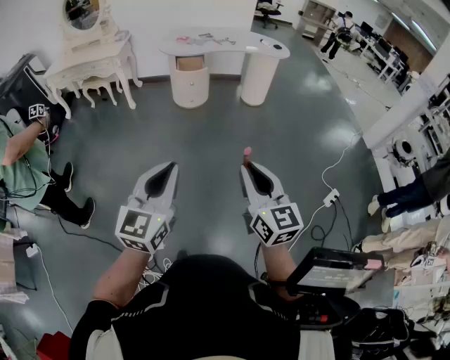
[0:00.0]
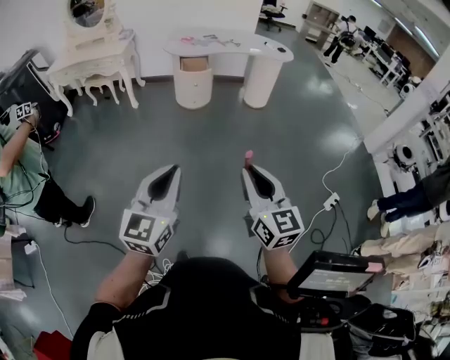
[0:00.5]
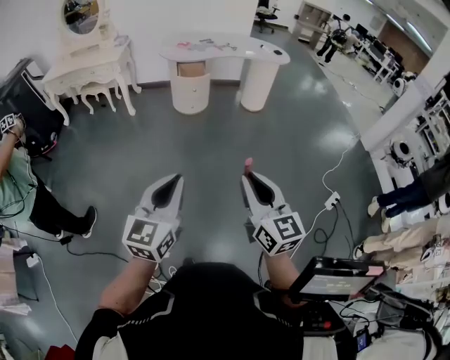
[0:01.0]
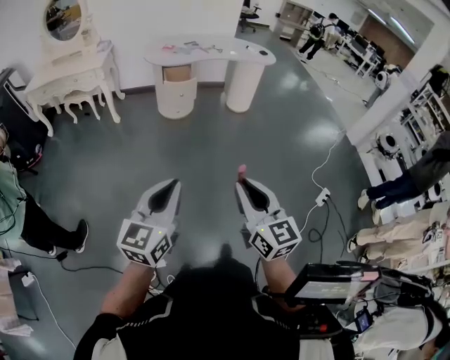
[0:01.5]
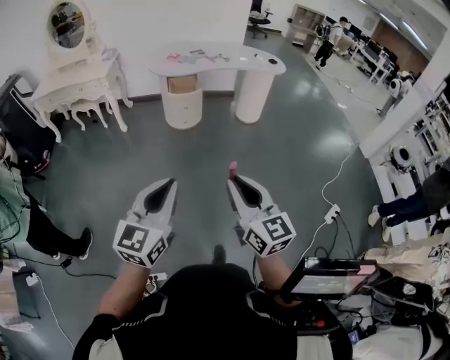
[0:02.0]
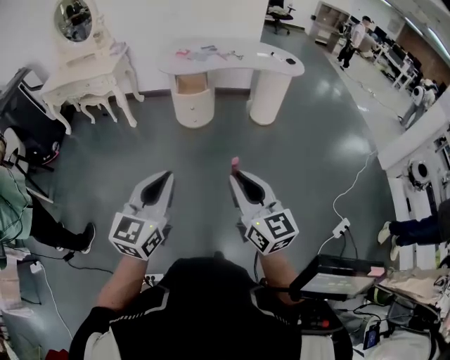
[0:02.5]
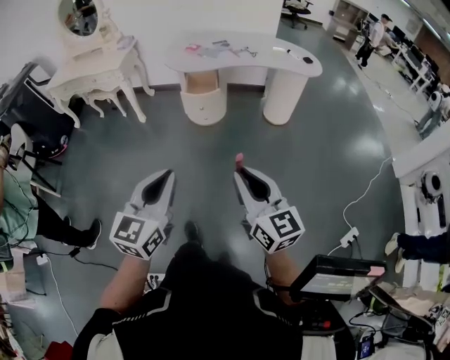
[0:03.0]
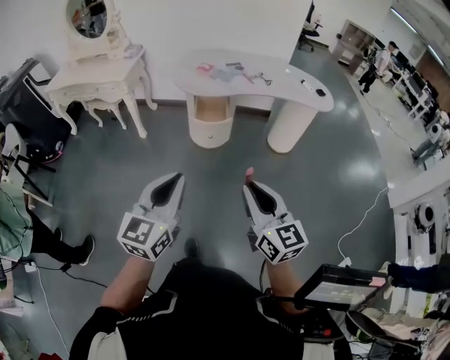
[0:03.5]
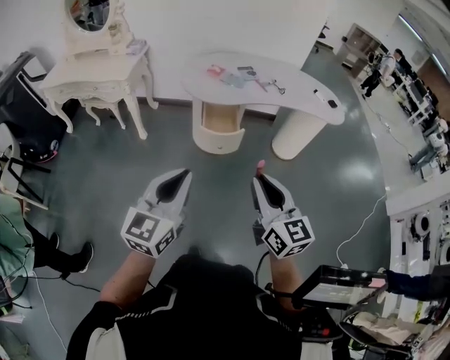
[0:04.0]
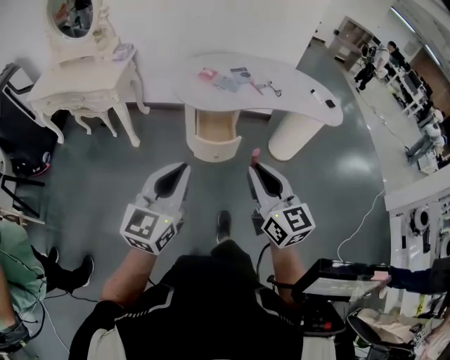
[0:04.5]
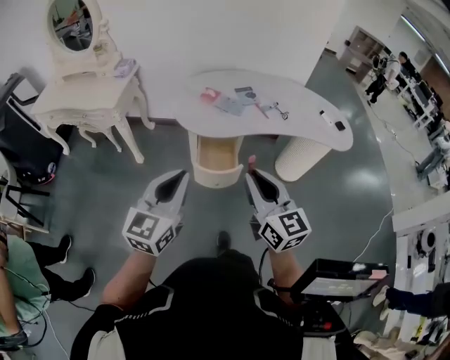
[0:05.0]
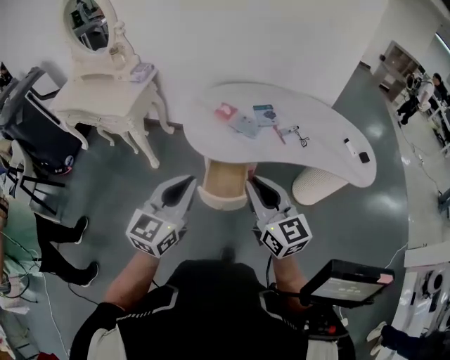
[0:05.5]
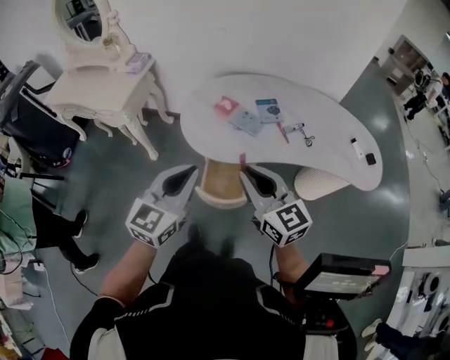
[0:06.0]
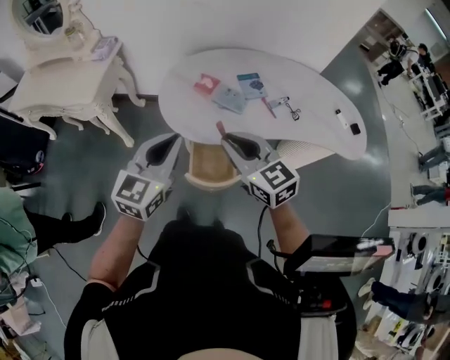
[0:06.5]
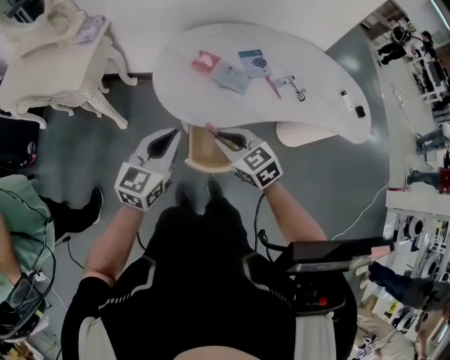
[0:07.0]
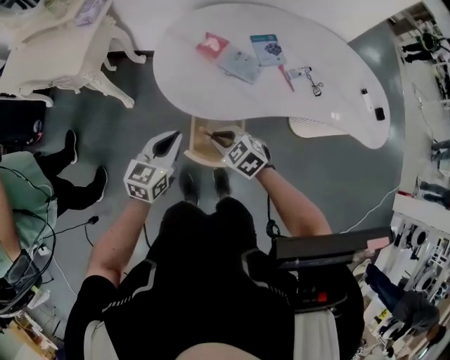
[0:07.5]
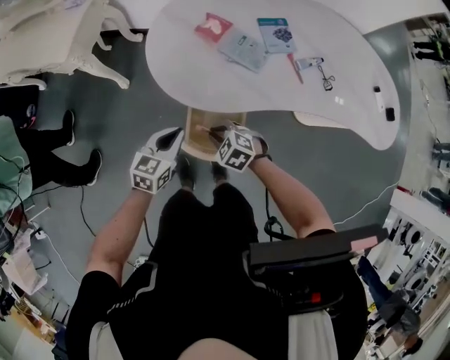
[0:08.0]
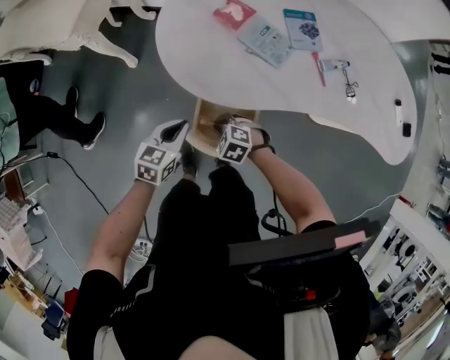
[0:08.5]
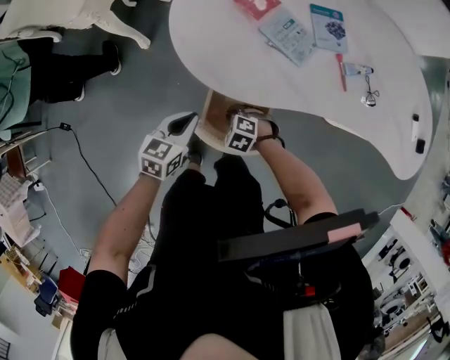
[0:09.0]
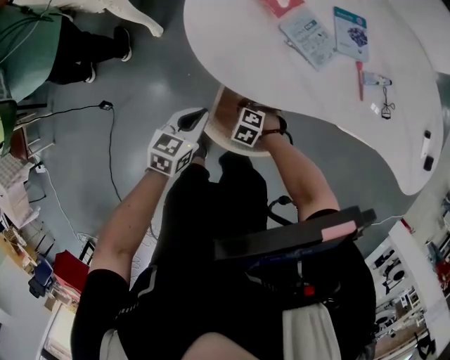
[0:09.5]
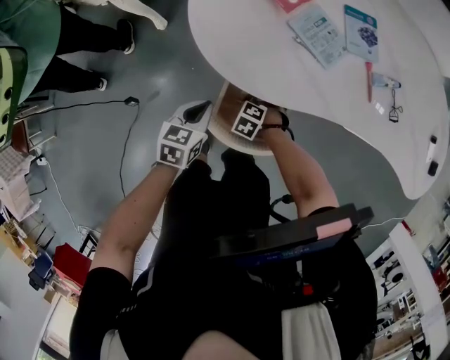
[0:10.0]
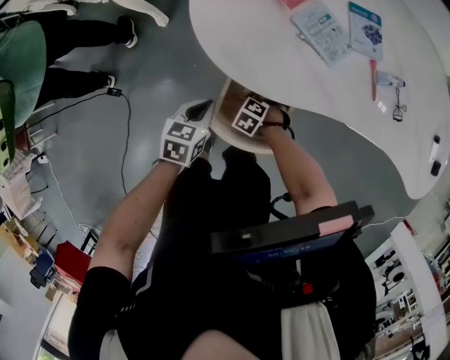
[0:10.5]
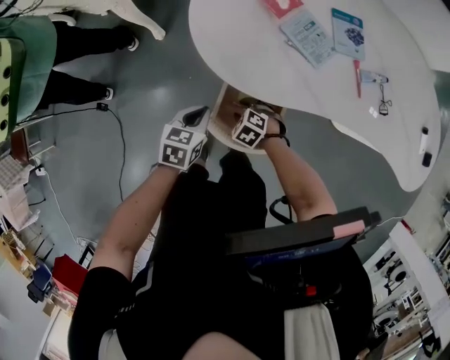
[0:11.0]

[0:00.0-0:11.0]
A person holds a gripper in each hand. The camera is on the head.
0.0 to 2.0 s: The right gripper shifts roughly 15 cm forward and to the left, while the left gripper shifts some 15 cm forward.
2.0 to 3.5 s: Both grippers travel together forward, roughly 35 cm.
3.5 to 5.5 s: Both grippers are carried forward, some 40 cm.
5.5 to 7.5 s: Both grippers travel together downward and forward, some 30 cm. The right gripper angles its fingers downward, by approximately 50 degrees; the left gripper changes its angle by roughly 20 degrees.
7.5 to 9.0 s: Both grippers travel together downward, about 20 cm. The right gripper changes its angle by approximately 30 degrees.
9.0 to 11.0 s: The right gripper opens.

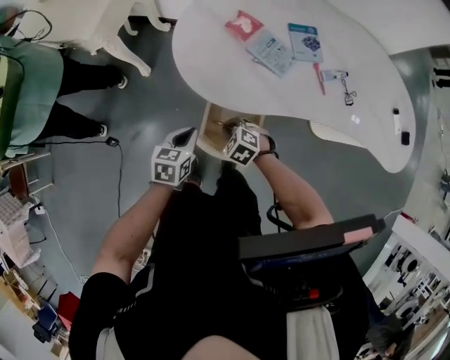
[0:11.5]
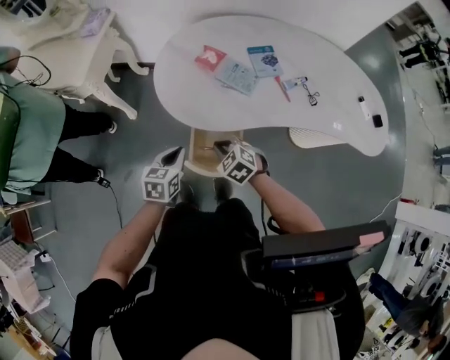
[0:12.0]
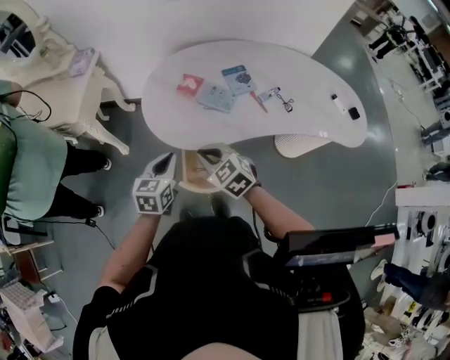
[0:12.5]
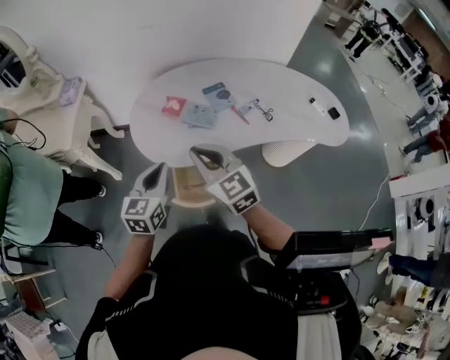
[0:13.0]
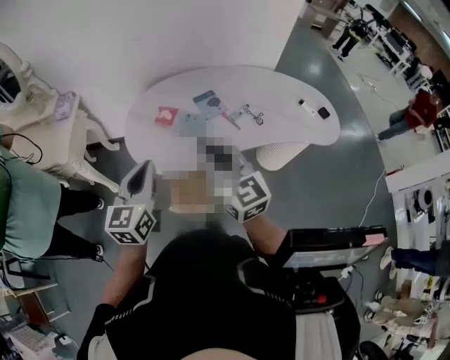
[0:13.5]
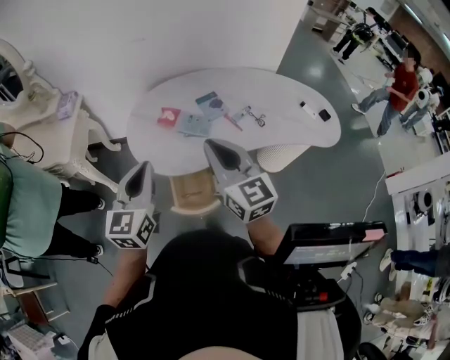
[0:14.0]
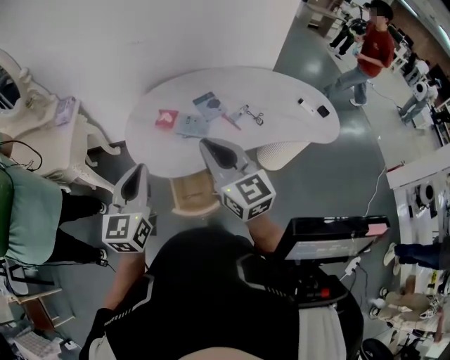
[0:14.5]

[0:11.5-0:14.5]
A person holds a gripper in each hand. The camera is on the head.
11.5 to 13.0 s: The left gripper travels upward by about 25 cm, and swivels about 30 degrees. Meanwhile the right gripper heads upward, covering approximately 35 cm, and tips its fingers upward by some 50 degrees.
13.0 to 14.5 s: Both grippers travel together upward, roughly 10 cm.

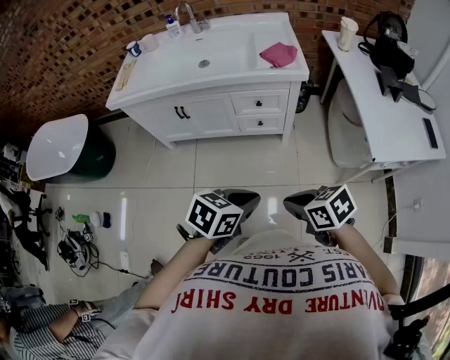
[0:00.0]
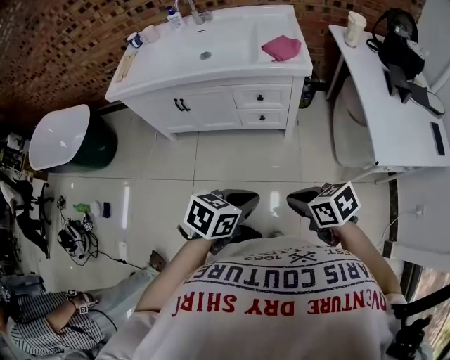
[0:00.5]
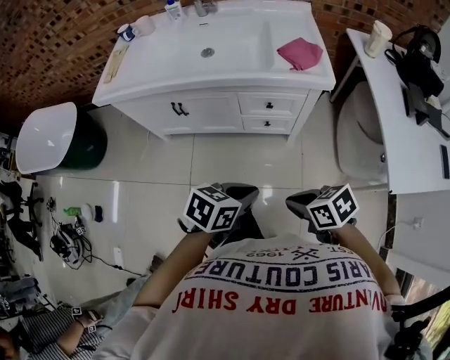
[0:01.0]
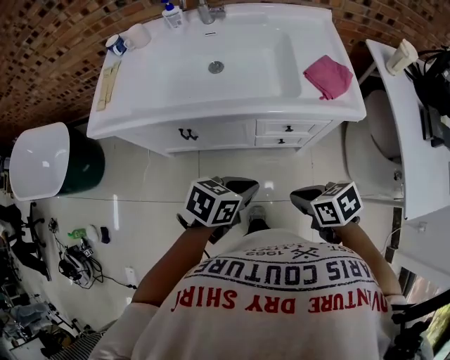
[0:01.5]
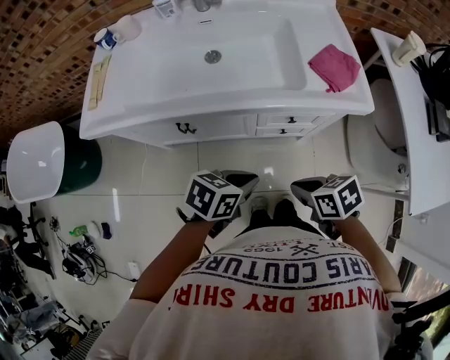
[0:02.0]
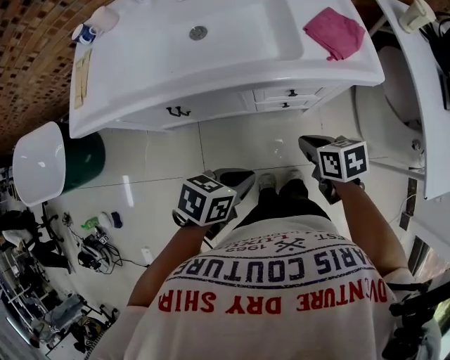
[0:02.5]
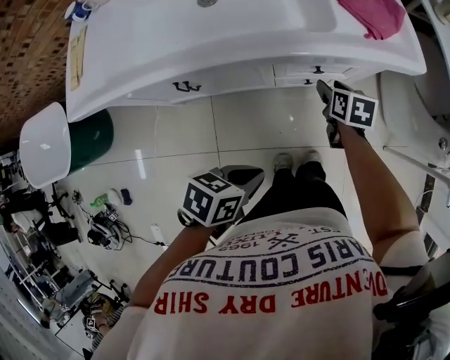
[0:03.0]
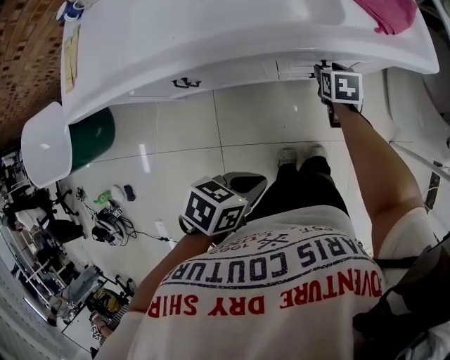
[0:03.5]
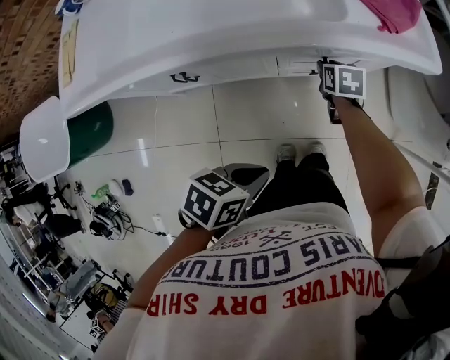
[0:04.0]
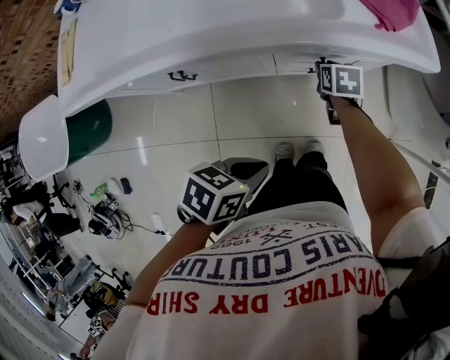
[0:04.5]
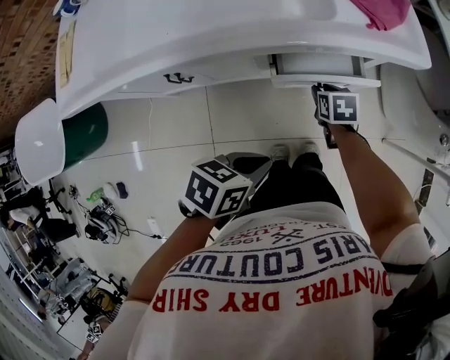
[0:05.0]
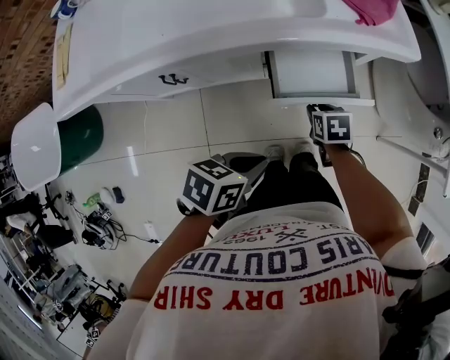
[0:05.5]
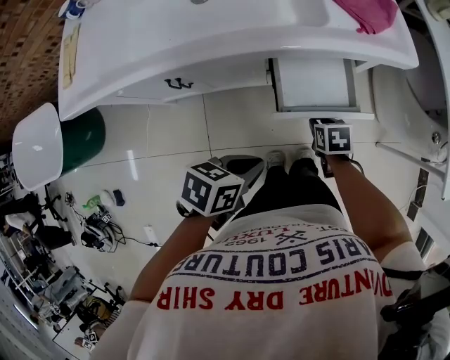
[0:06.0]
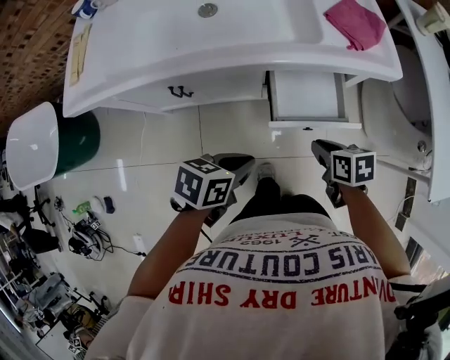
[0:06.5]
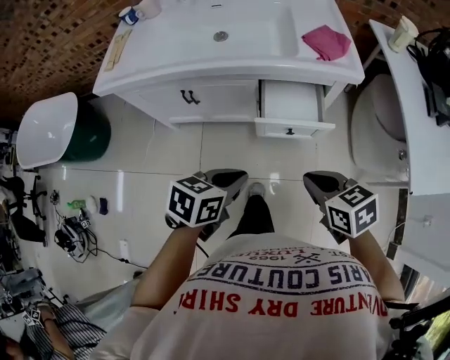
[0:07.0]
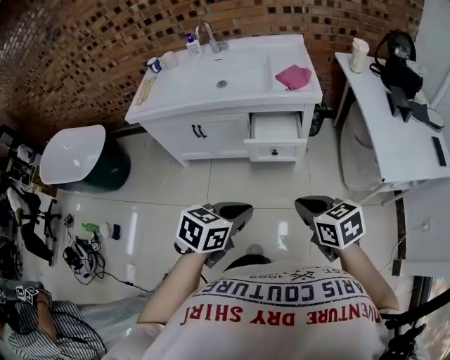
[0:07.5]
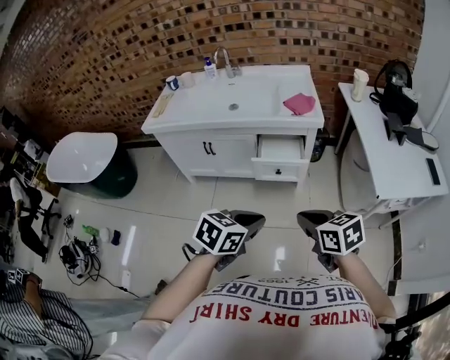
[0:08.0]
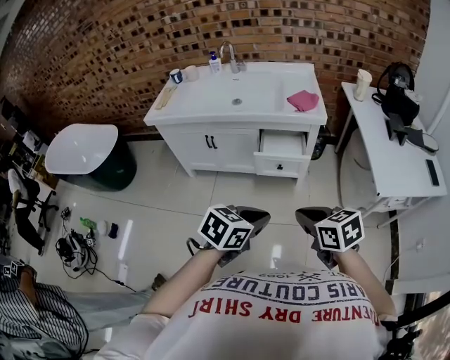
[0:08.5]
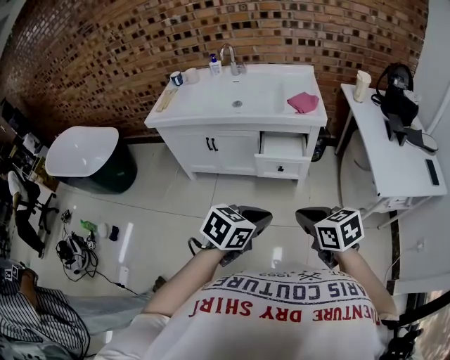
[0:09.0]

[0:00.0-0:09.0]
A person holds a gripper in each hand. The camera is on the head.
0.0 to 2.0 s: The right gripper shifts by some 35 cm, while the left gripper changes place by about 35 cm.
2.0 to 4.5 s: The right gripper travels downward by approximately 25 cm, changes its angle by about 30 degrees, and opens up, while the left gripper goes some 10 cm downward.
4.5 to 7.0 s: The right gripper changes place by roughly 40 cm, turns by approximately 40 degrees, and closes its fingers; the left gripper moves upward, roughly 15 cm, and turns by some 20 degrees.
7.0 to 9.0 s: The left gripper is displaced backward, upward and to the right by about 30 cm; the right gripper is displaced backward and upward by roughly 25 cm.

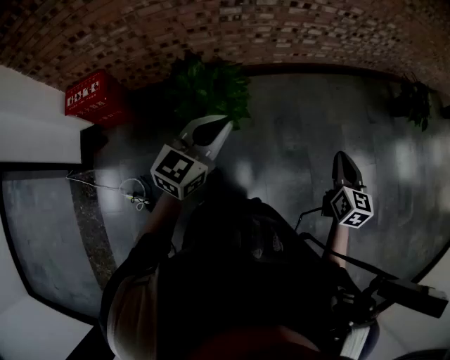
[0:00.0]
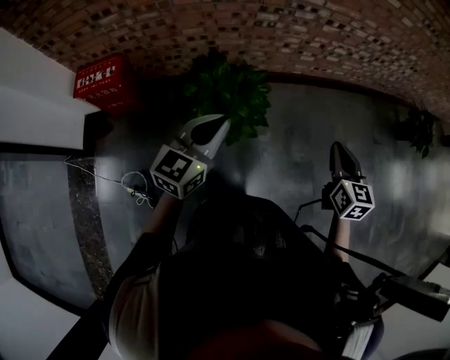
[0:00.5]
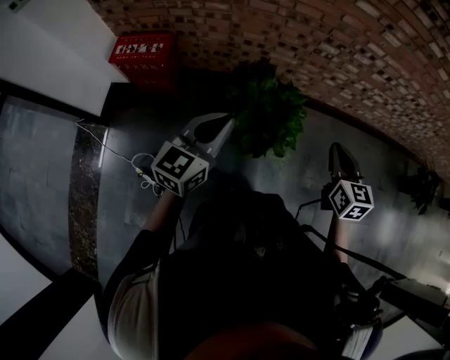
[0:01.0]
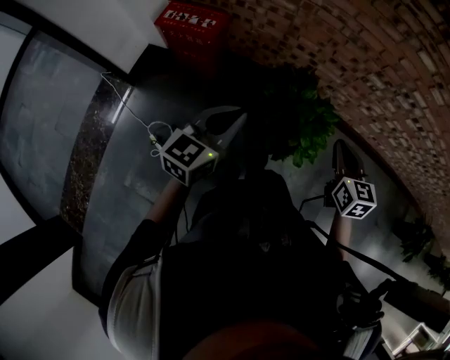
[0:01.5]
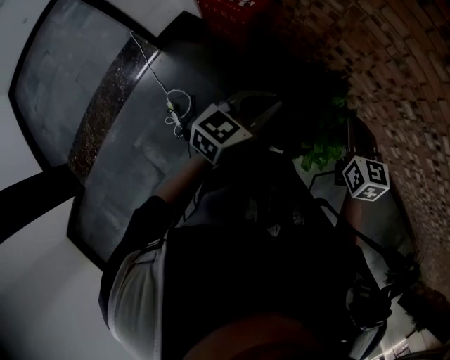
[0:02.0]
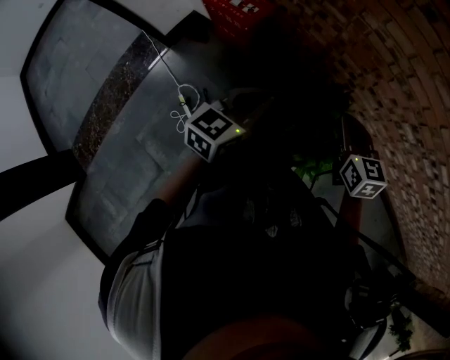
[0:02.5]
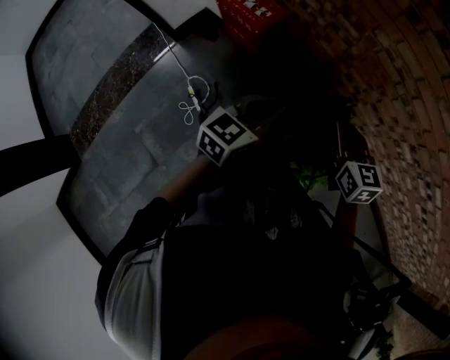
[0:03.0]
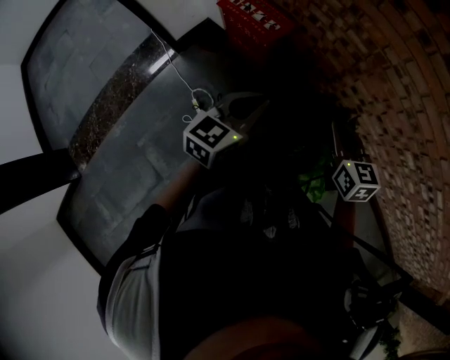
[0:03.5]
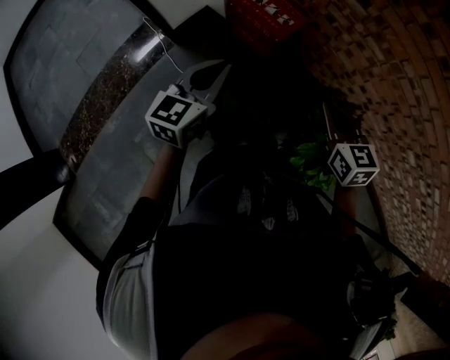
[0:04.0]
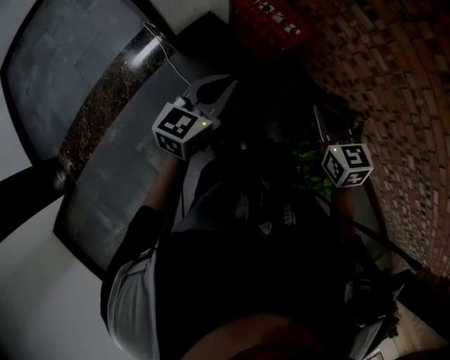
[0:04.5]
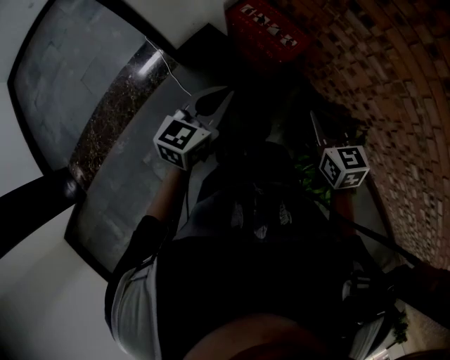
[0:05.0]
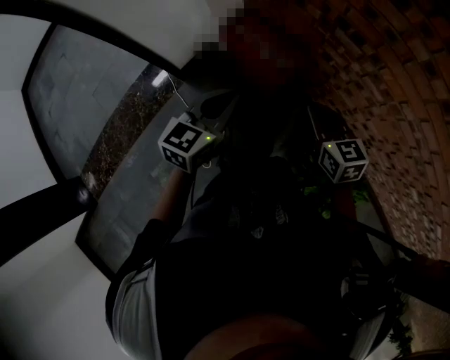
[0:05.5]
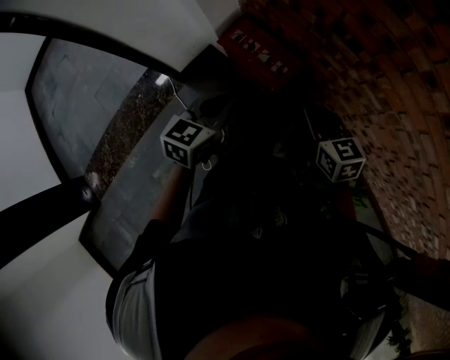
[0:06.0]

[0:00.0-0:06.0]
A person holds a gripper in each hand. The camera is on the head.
0.0 to 2.0 s: The left gripper moves roughly 40 cm, and rotates about 40 degrees; the right gripper shifts by approximately 60 cm, and changes its angle by some 60 degrees.
2.0 to 4.0 s: The two grippers go about 30 cm to the left and forward. The left gripper changes its angle by approximately 20 degrees.
4.0 to 6.0 s: Both grippers travel together forward, about 20 cm.
